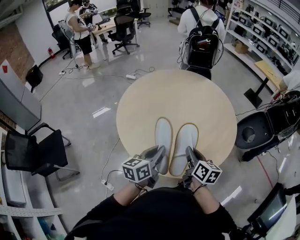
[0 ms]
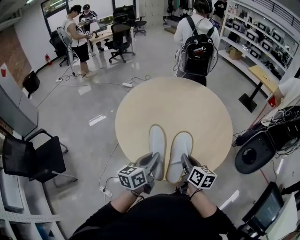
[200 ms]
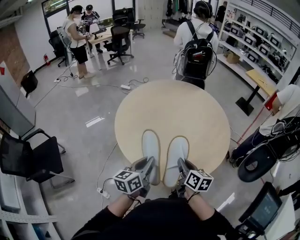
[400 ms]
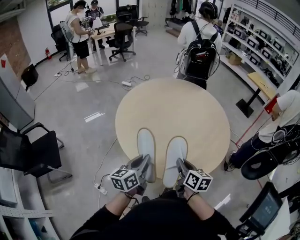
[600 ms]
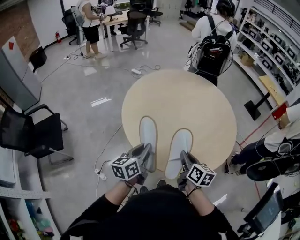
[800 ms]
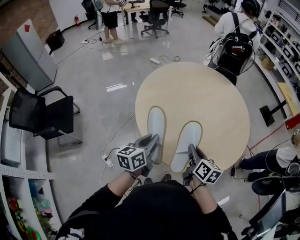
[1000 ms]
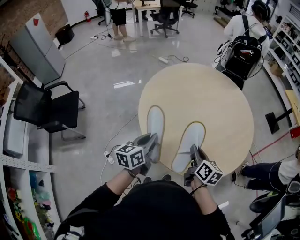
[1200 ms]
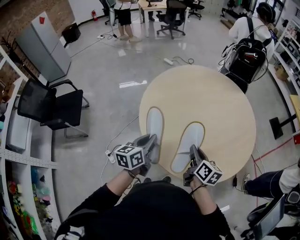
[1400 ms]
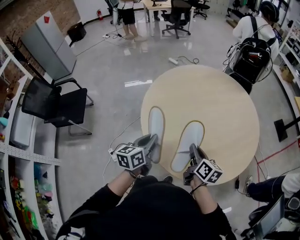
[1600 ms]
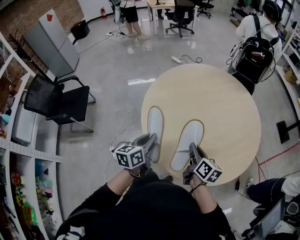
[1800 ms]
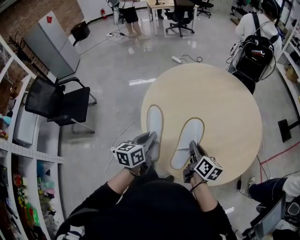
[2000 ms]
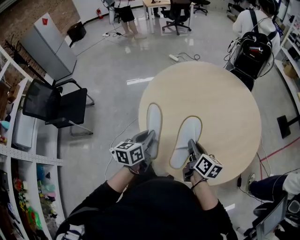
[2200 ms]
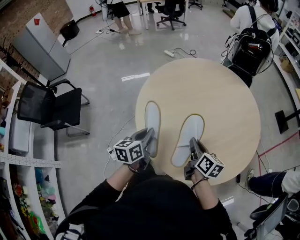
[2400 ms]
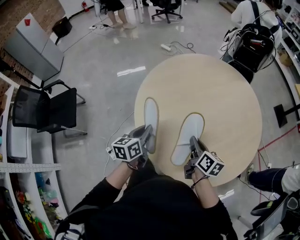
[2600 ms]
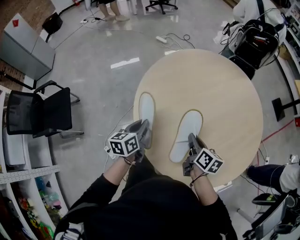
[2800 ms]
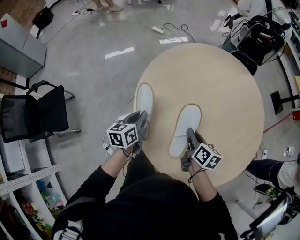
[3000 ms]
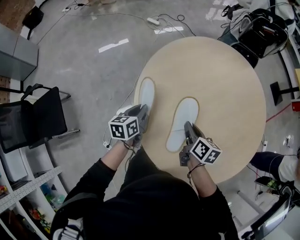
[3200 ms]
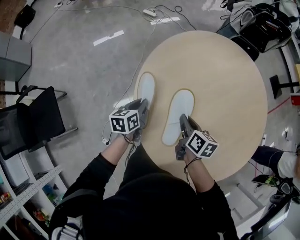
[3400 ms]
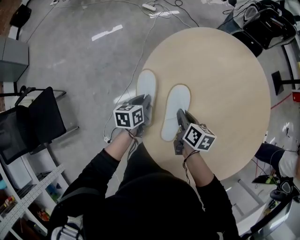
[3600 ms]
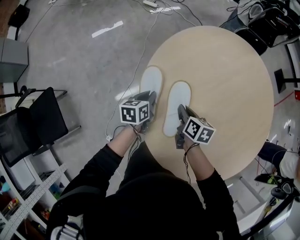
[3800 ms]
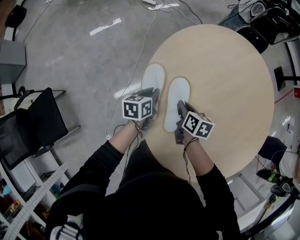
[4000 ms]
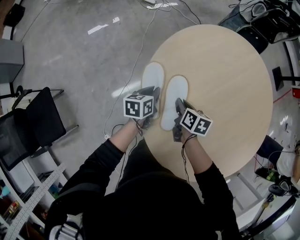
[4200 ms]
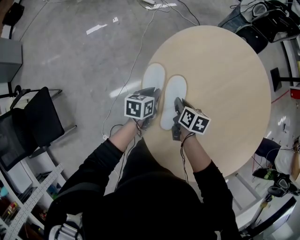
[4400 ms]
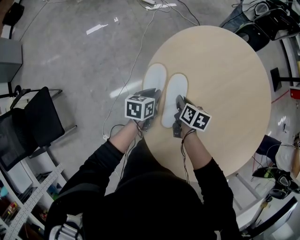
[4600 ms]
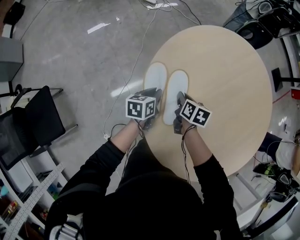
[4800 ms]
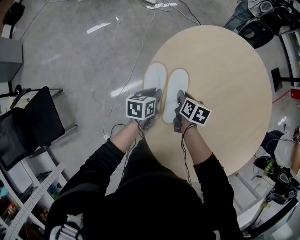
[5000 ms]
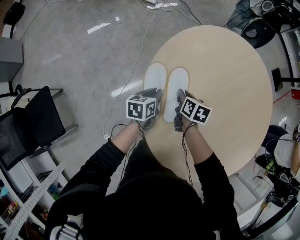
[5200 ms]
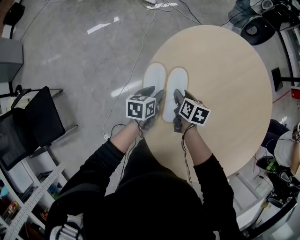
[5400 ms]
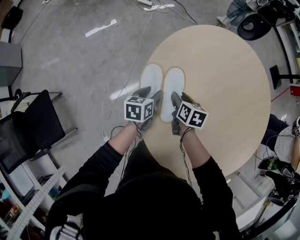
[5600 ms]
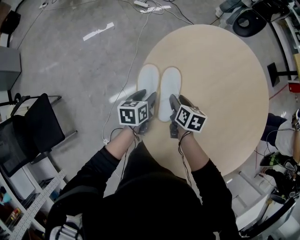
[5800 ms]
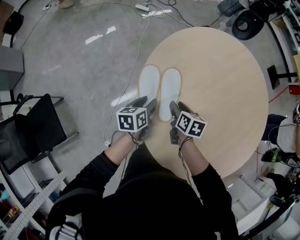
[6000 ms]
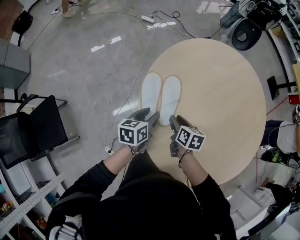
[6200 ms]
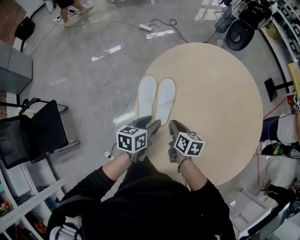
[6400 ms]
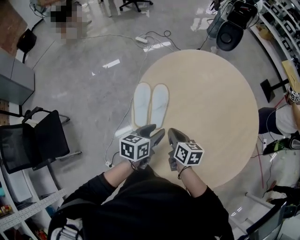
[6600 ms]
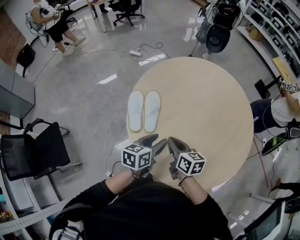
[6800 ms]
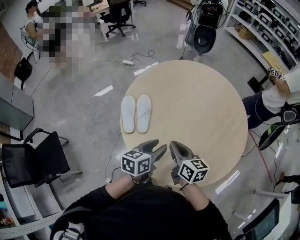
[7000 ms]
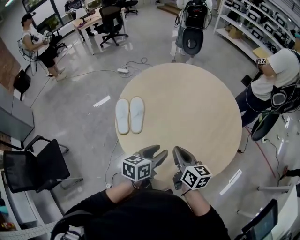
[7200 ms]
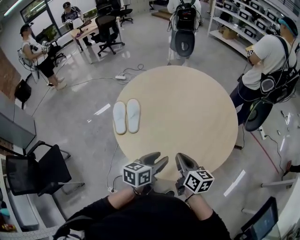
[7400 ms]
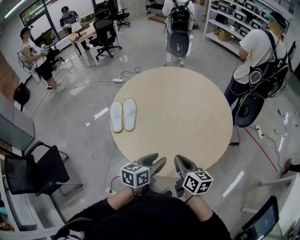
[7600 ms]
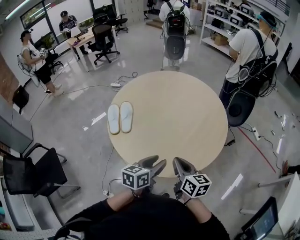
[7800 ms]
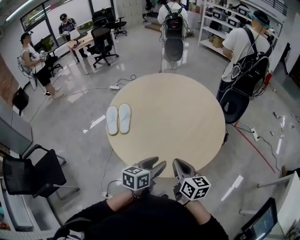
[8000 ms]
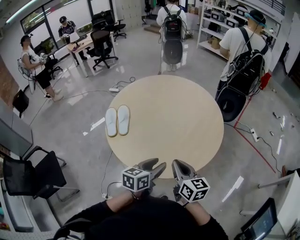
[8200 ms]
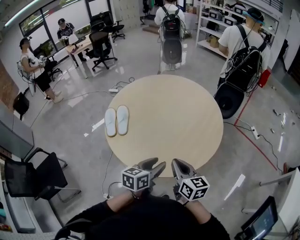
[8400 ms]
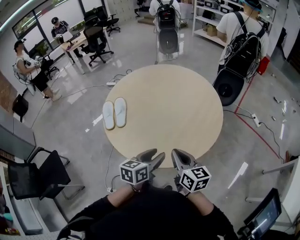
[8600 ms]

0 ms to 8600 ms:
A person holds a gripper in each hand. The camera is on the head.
0 ms to 1400 ms: The left gripper is displaced to the left by some 10 cm, and rotates roughly 20 degrees. Meanwhile the right gripper moves to the left, some 5 cm.
1400 ms to 2800 ms: Both grippers move forward and downward, roughly 20 cm.
2800 ms to 4400 ms: The right gripper travels forward, to the left and downward by about 30 cm; the left gripper moves forward and downward, some 30 cm, and changes its angle by roughly 20 degrees.
4400 ms to 5800 ms: The left gripper opens up, while the right gripper opens up.
5800 ms to 7200 ms: The right gripper is displaced backward, upward and to the right by about 40 cm, tilts its fingers some 30 degrees upward, and closes its fingers. The left gripper is displaced to the right, backward and upward by about 50 cm, and rotates some 30 degrees.
7200 ms to 8600 ms: Both grippers travel together to the right and backward, some 20 cm.

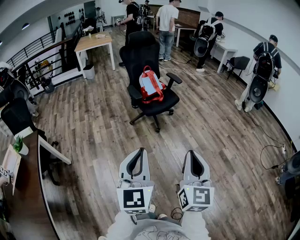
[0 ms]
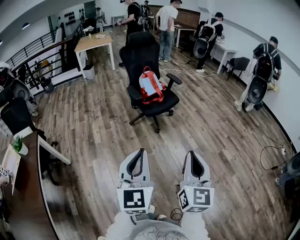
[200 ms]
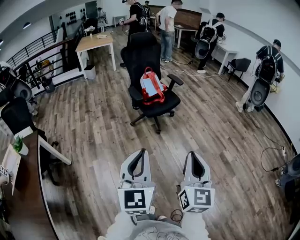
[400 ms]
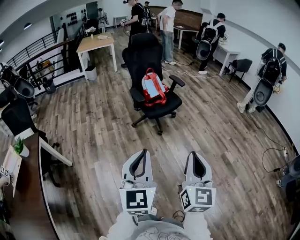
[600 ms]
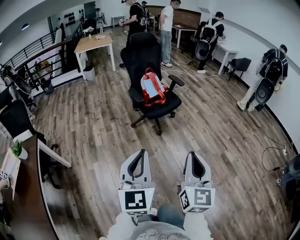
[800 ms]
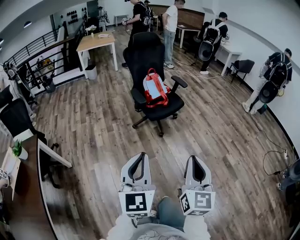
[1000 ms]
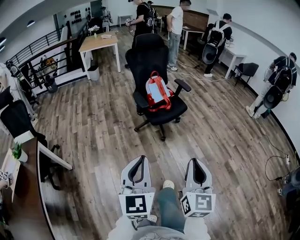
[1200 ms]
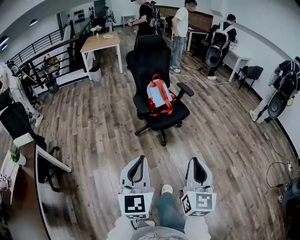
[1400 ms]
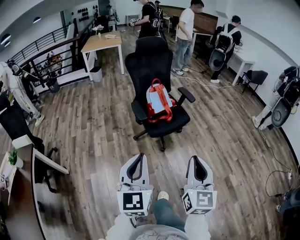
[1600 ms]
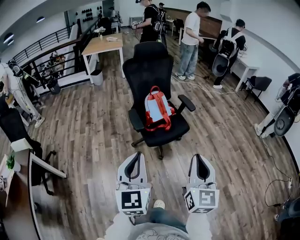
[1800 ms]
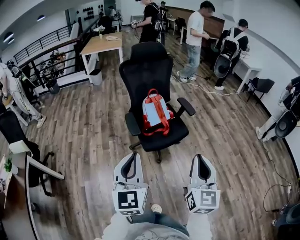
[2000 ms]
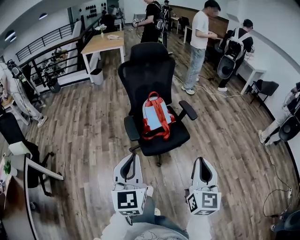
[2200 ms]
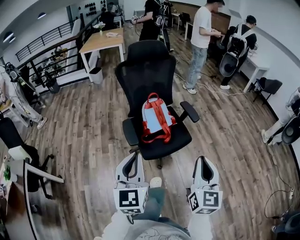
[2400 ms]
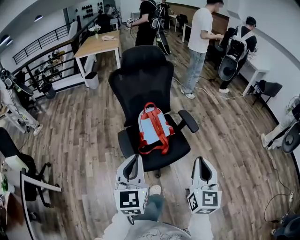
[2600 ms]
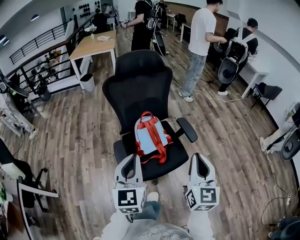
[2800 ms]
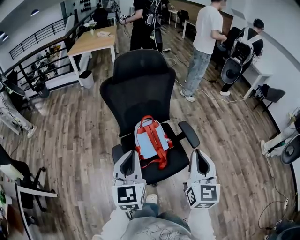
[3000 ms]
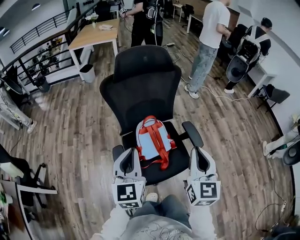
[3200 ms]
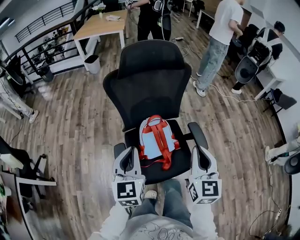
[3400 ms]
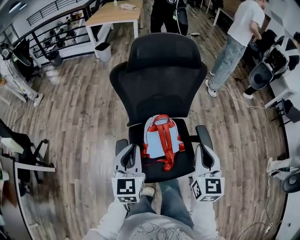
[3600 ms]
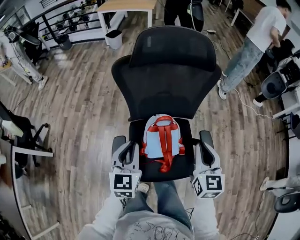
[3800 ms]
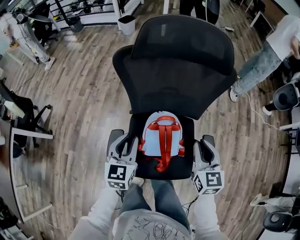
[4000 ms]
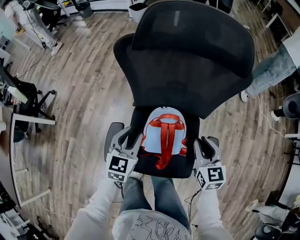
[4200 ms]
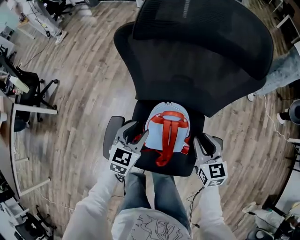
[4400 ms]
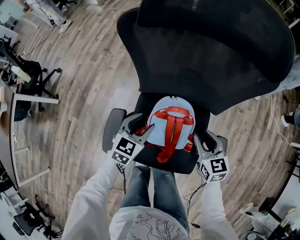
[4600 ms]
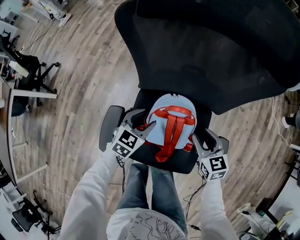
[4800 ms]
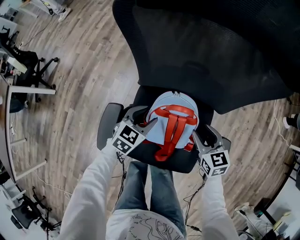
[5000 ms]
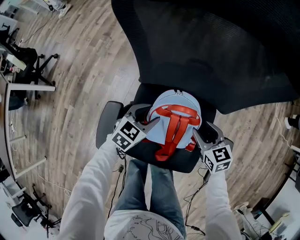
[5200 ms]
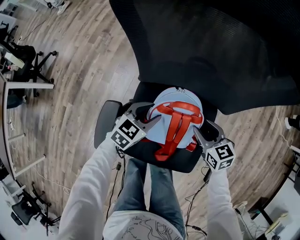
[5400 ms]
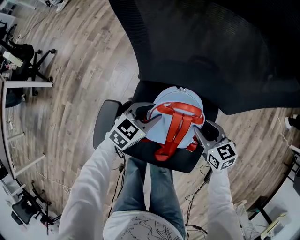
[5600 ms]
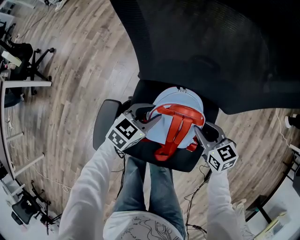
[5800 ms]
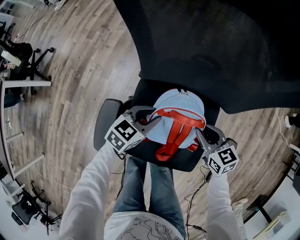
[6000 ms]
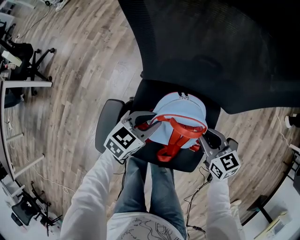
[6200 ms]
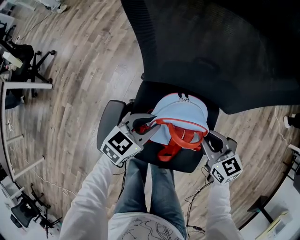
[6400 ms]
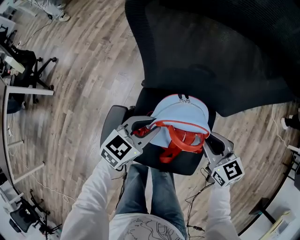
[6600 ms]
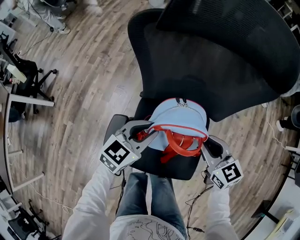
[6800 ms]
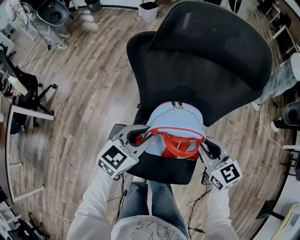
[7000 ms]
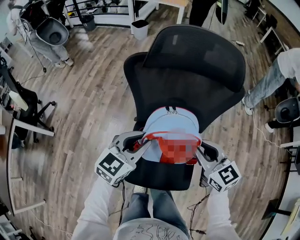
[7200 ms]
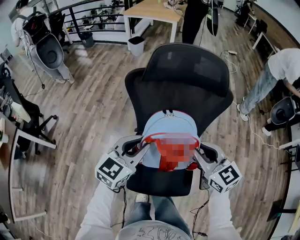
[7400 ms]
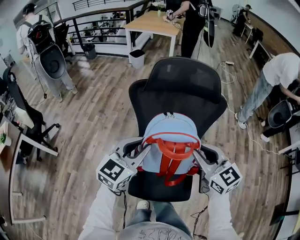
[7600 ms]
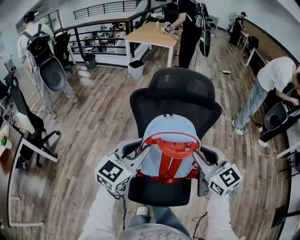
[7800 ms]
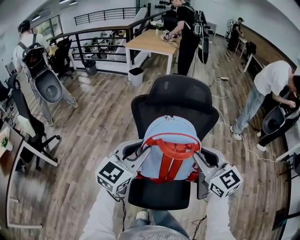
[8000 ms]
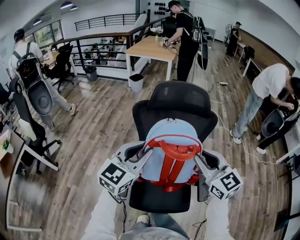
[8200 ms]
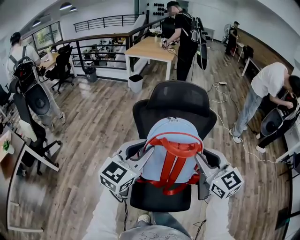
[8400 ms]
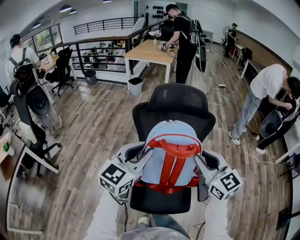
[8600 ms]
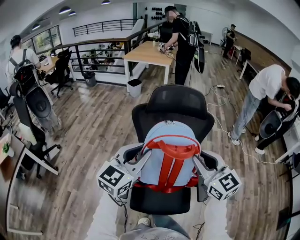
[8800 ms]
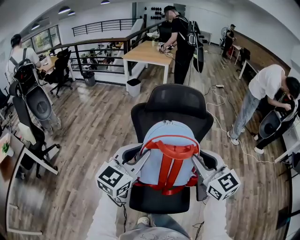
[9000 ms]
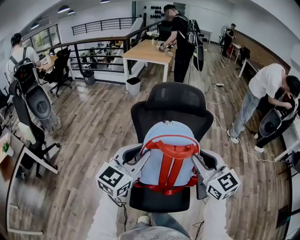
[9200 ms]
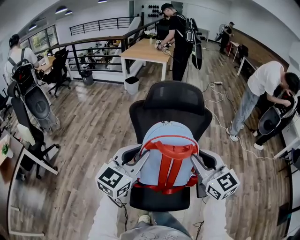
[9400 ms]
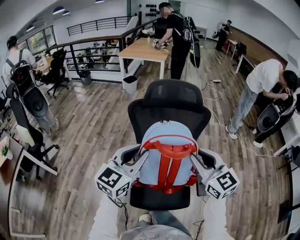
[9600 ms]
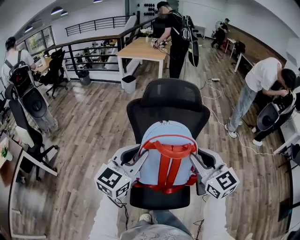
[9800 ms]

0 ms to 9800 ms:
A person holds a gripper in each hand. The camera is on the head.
0 ms to 1400 ms: The two grippers go some 15 cm forward.
1400 ms to 2800 ms: The two grippers travel together, forward, approximately 60 cm.
2800 ms to 4200 ms: The left gripper ends up about 40 cm from where it was, changes its angle by about 30 degrees, and opens its fingers. The right gripper ends up some 50 cm from where it was, changes its angle by about 50 degrees, and opens its fingers.
4200 ms to 5600 ms: The two grippers go approximately 20 cm downward. The right gripper turns by some 30 degrees; the left gripper swivels some 30 degrees.
5600 ms to 7000 ms: Both grippers travel together upward, roughly 25 cm. The right gripper closes its fingers.
7000 ms to 8400 ms: Both grippers travel together upward, roughly 25 cm. The left gripper changes its angle by some 20 degrees. Meanwhile the right gripper turns by roughly 20 degrees.
8400 ms to 9800 ms: The grippers stay close to where they were, moving slightly.

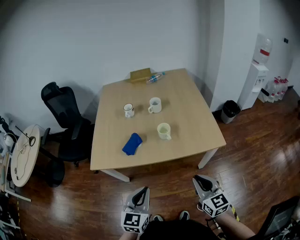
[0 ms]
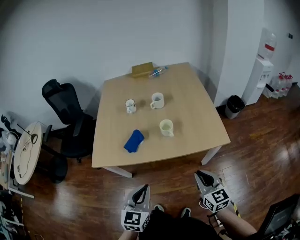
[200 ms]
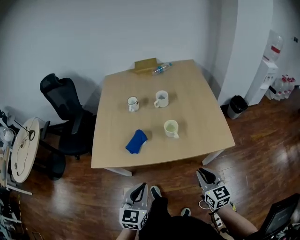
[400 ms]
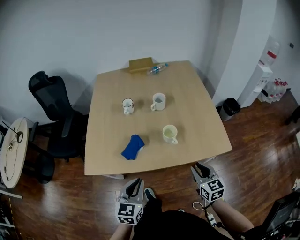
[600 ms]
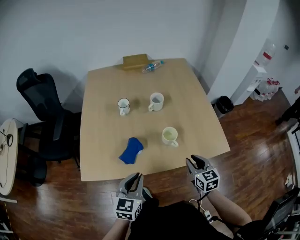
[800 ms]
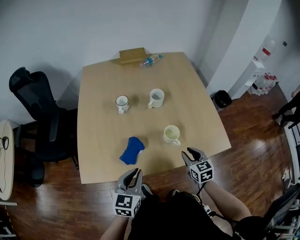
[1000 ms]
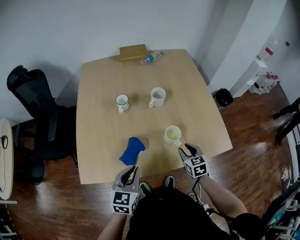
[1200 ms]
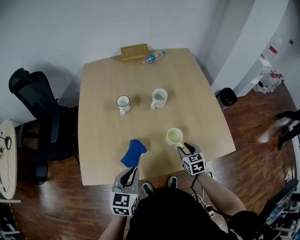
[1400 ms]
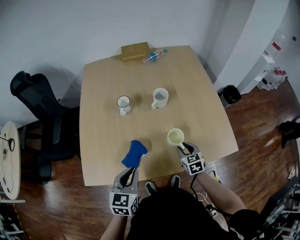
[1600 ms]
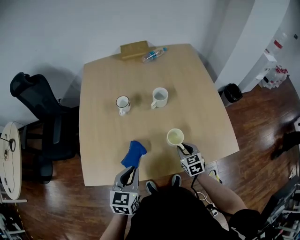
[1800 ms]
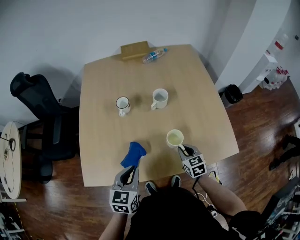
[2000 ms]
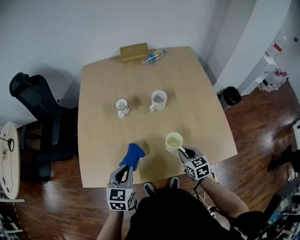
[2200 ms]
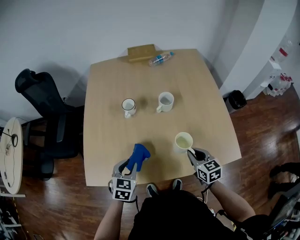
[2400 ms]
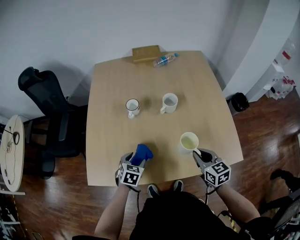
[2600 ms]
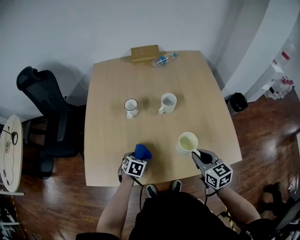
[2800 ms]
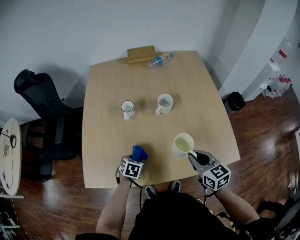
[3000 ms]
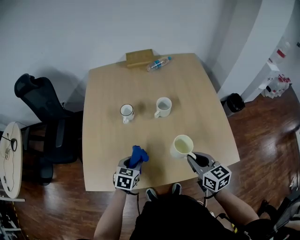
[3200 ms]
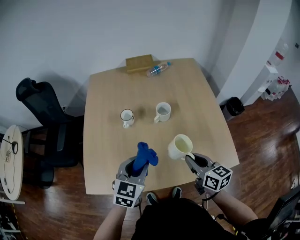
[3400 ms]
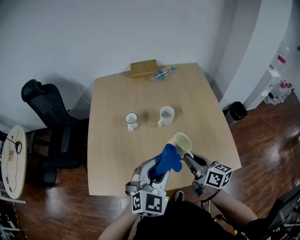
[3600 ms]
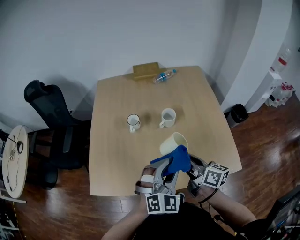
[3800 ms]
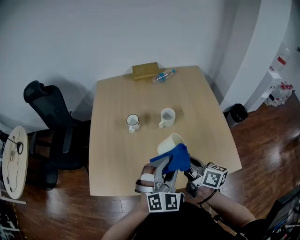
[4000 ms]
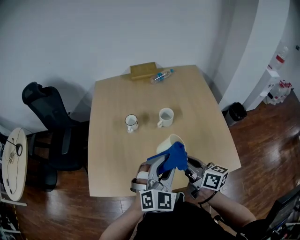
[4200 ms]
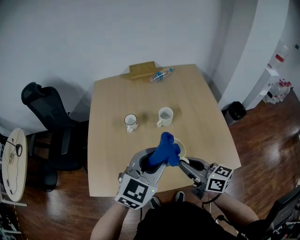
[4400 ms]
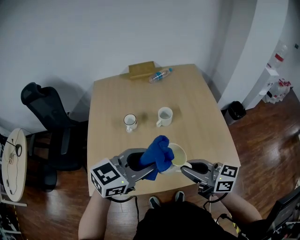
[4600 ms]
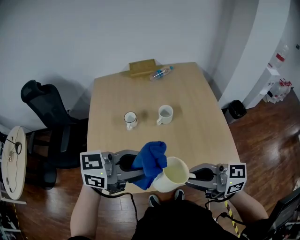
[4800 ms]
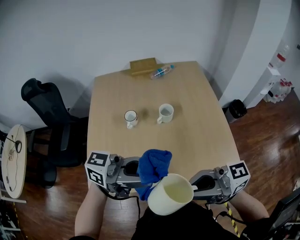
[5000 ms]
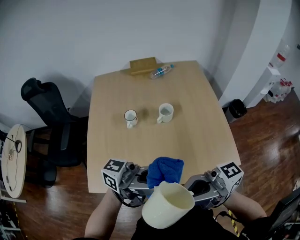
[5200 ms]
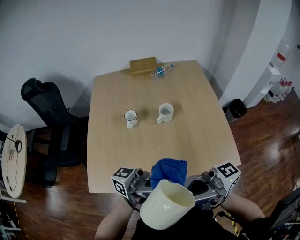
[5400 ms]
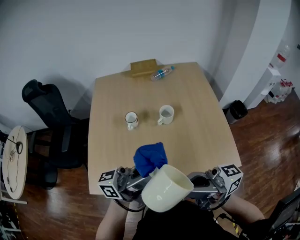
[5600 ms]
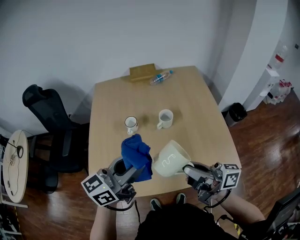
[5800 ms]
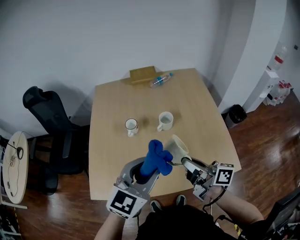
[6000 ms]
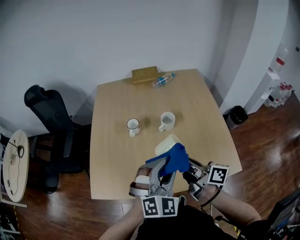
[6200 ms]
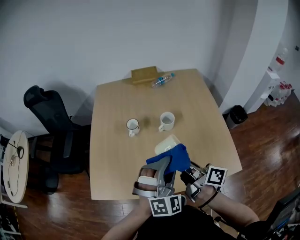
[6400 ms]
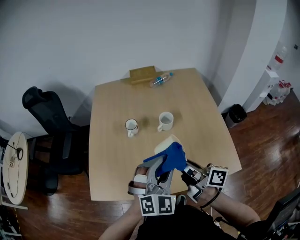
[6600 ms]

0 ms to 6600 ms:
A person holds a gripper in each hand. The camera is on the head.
0 ms to 1600 ms: The left gripper is displaced forward and to the left by approximately 25 cm. Meanwhile the right gripper goes some 40 cm forward and downward, angles its fingers downward, by roughly 30 degrees, and opens.
1600 ms to 3200 ms: The left gripper moves downward and forward, roughly 15 cm, rotates about 20 degrees, and opens, then closes once more, while the right gripper travels upward by about 15 cm, rotates some 20 degrees, and closes up.
3200 ms to 5000 ms: The right gripper heads upward, covering approximately 20 cm, and tilts its fingers about 40 degrees upward. Meanwhile the left gripper heads upward, covering about 35 cm, and angles its fingers upward, by roughly 60 degrees.
5000 ms to 6600 ms: The right gripper changes place by some 20 cm, and rotates about 50 degrees. The left gripper heads downward, covering about 10 cm, and tips its fingers downward by roughly 30 degrees.
